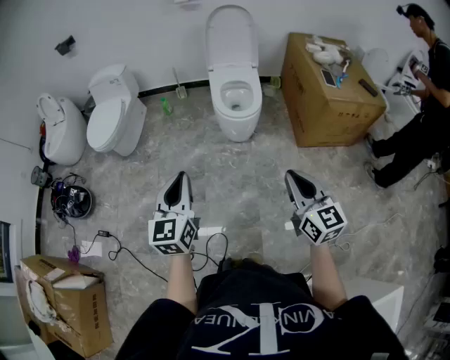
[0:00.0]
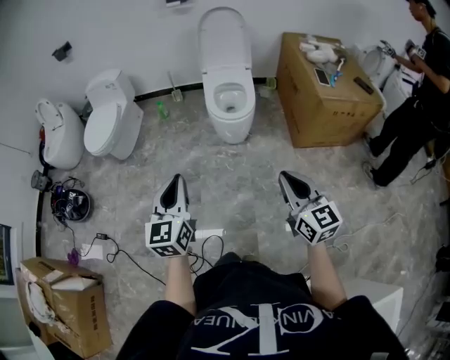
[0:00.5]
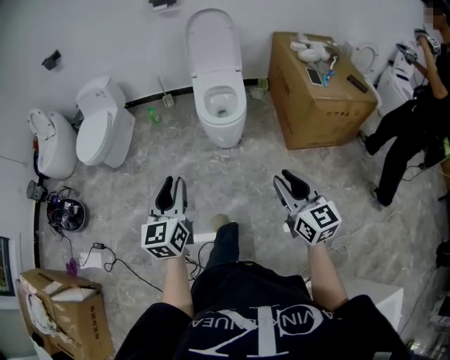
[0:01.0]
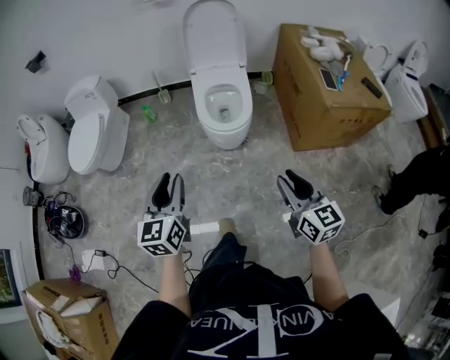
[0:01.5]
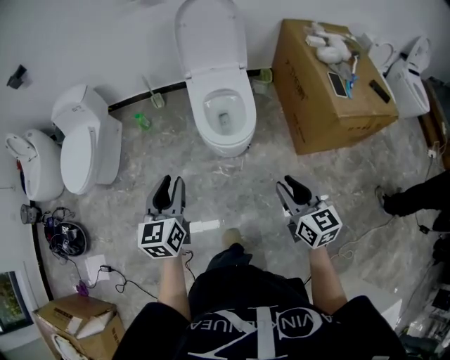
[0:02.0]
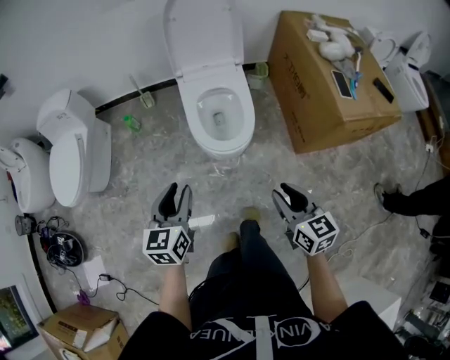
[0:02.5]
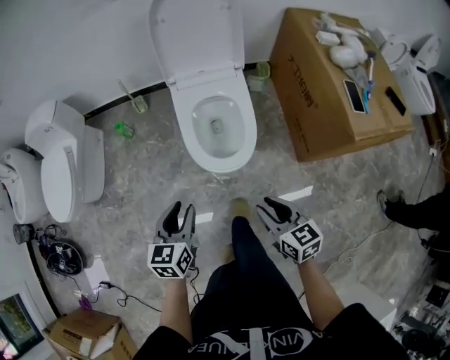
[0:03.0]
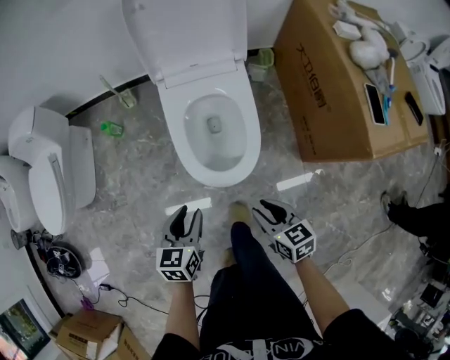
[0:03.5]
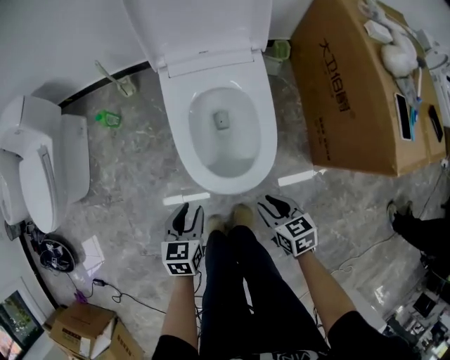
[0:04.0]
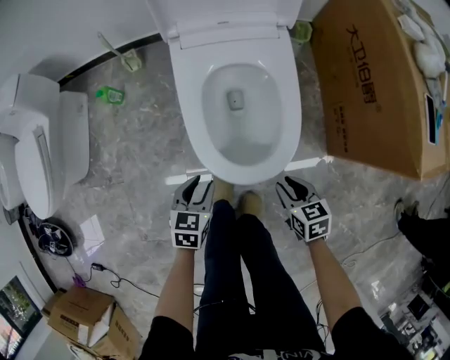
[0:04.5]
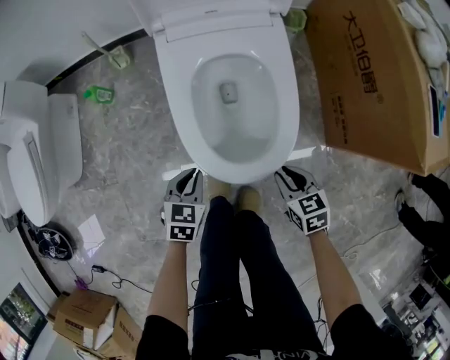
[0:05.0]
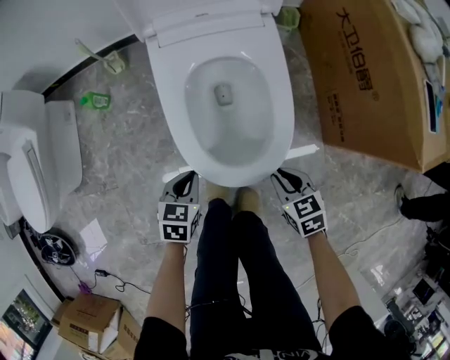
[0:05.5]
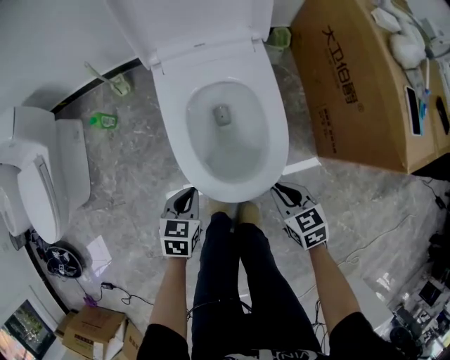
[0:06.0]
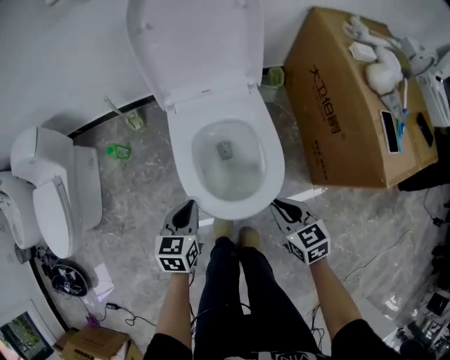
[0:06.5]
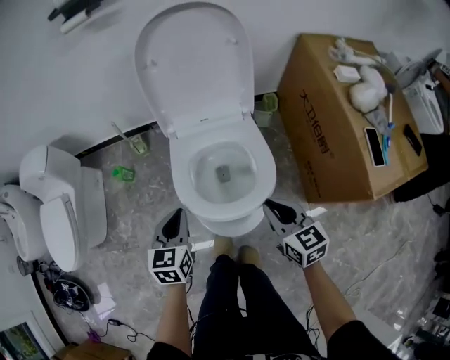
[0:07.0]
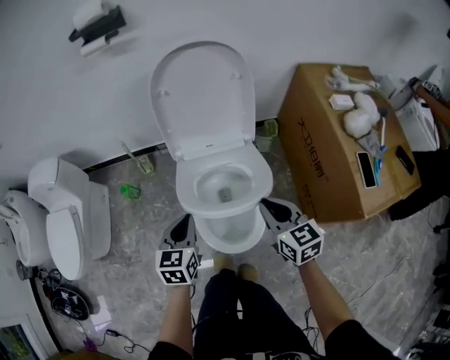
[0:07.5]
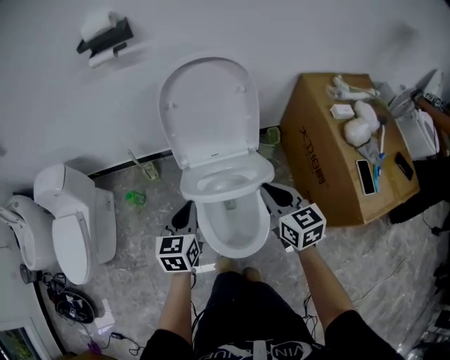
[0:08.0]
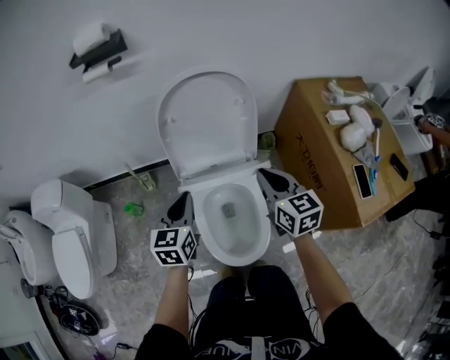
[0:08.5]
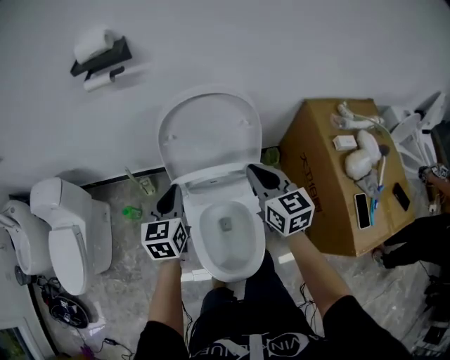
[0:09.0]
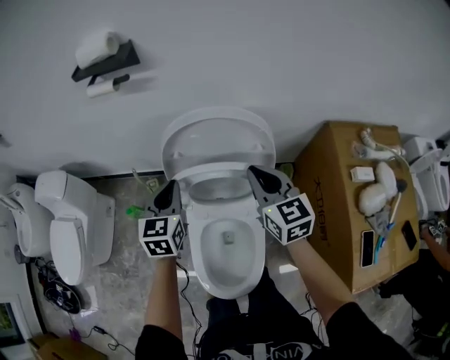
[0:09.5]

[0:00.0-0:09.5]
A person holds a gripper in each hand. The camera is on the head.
0:00.0 to 0:02.0: The grippers both shift forward by about 30 cm. The left gripper opens up. Meanwhile the right gripper opens up.
0:02.0 to 0:04.0: The grippers both shift downward and forward by some 40 cm. The right gripper swivels approximately 30 degrees; the left gripper swivels approximately 30 degrees.
0:04.0 to 0:05.5: The left gripper moves downward and forward, approximately 10 cm, and closes up; the right gripper moves downward, about 5 cm.
0:05.5 to 0:07.5: The right gripper goes about 35 cm upward and forward, and swivels approximately 30 degrees. The left gripper moves upward, roughly 30 cm, and turns by roughly 30 degrees.
0:07.5 to 0:09.5: The left gripper moves forward and upward, some 30 cm; the right gripper is displaced forward by some 30 cm.

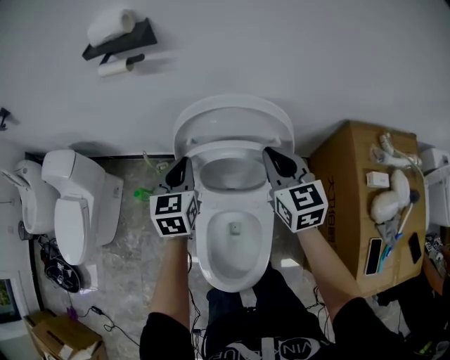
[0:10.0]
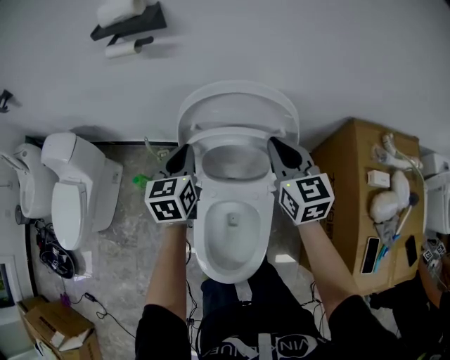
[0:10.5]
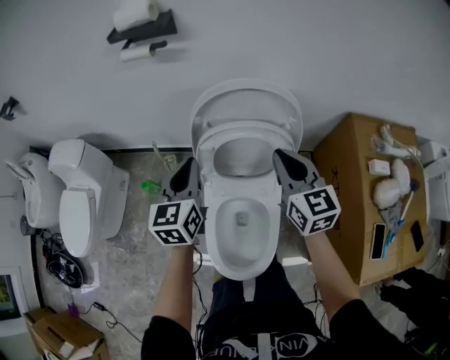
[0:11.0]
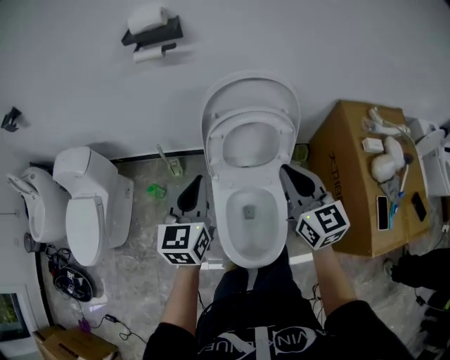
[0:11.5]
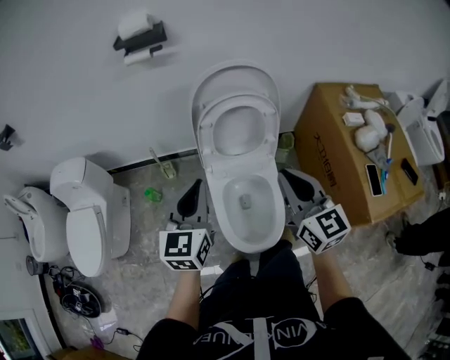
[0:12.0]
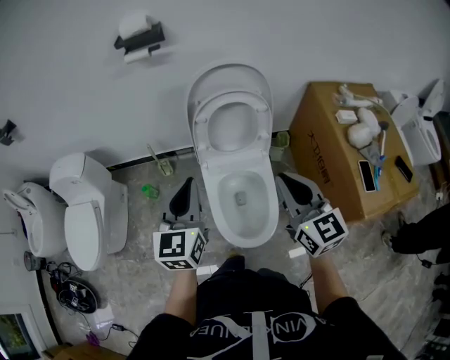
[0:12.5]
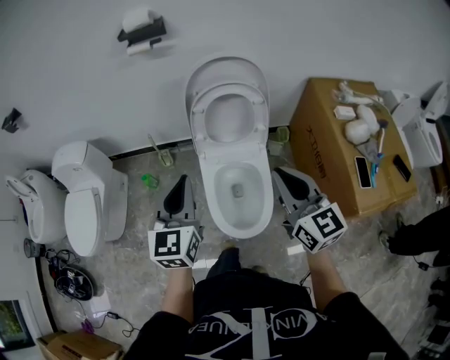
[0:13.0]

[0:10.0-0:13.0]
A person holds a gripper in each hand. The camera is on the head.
0:10.0 to 0:11.5: The left gripper travels backward and upward by approximately 20 cm. The right gripper shifts some 20 cm backward.
0:11.5 to 0:13.0: Both grippers move backward, approximately 15 cm.

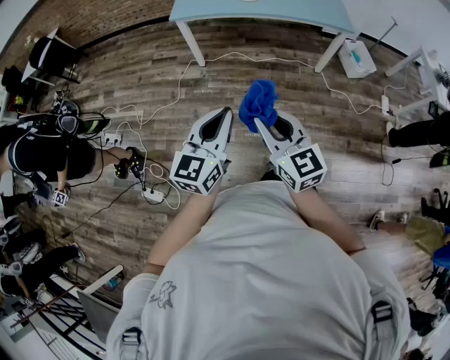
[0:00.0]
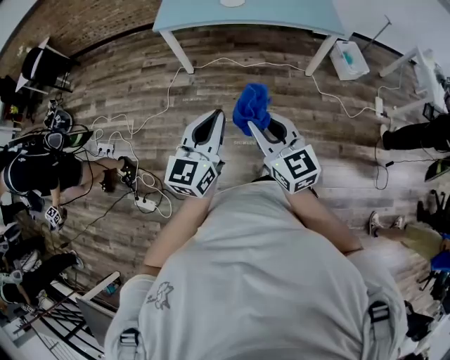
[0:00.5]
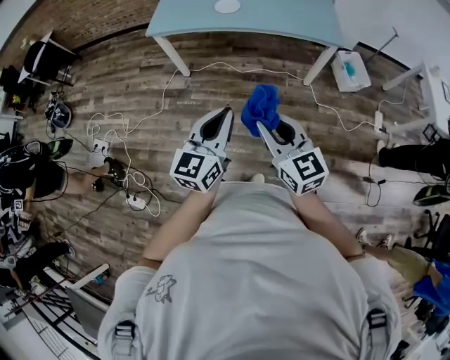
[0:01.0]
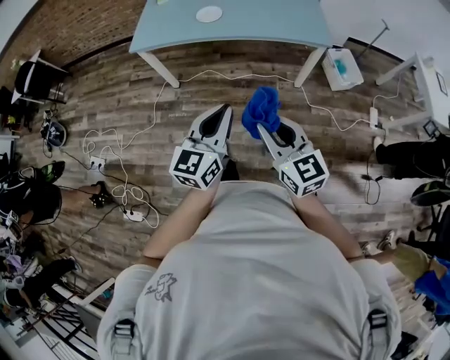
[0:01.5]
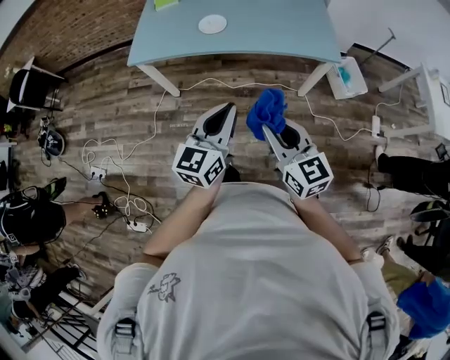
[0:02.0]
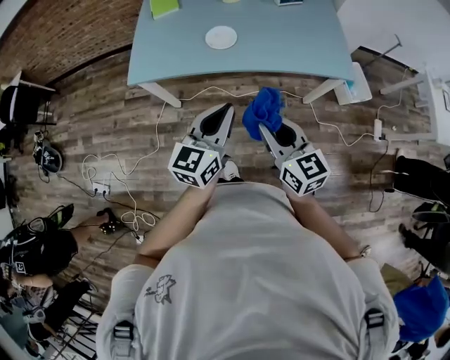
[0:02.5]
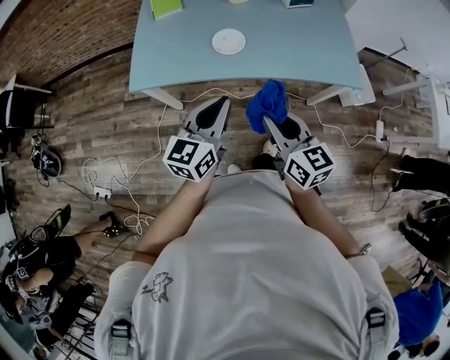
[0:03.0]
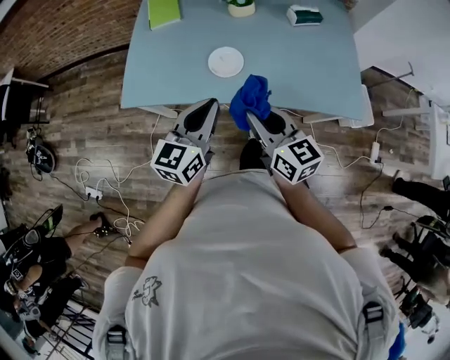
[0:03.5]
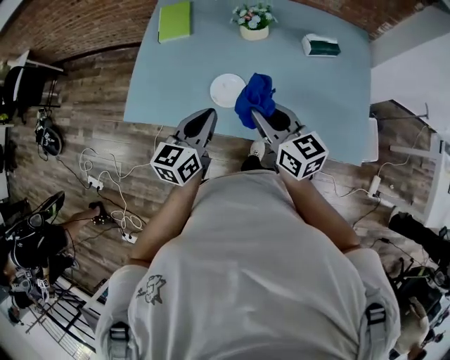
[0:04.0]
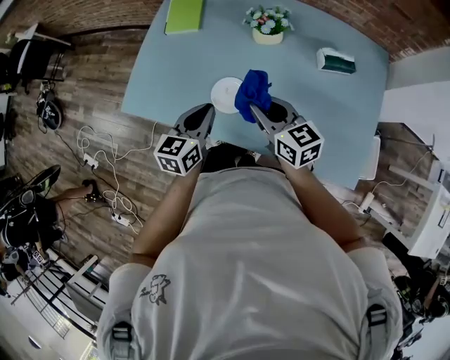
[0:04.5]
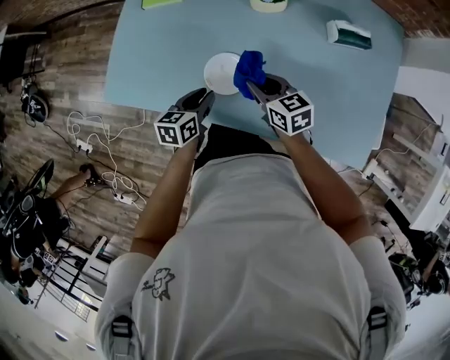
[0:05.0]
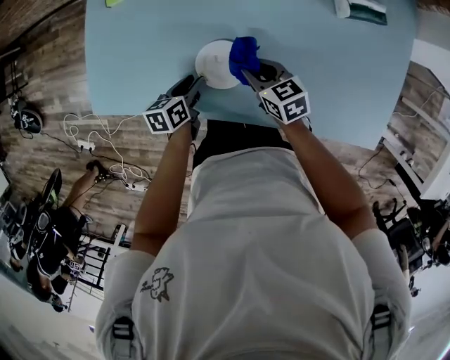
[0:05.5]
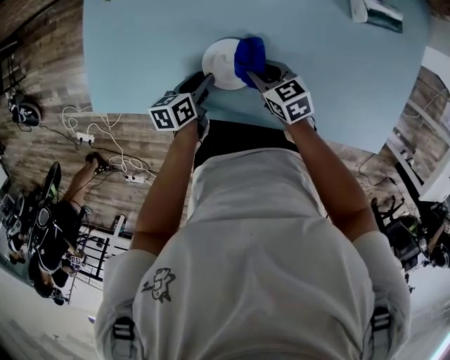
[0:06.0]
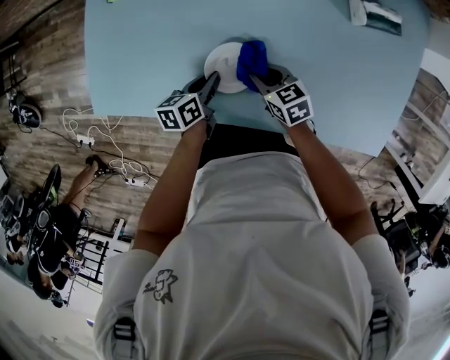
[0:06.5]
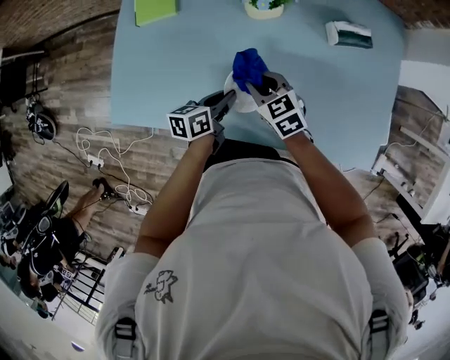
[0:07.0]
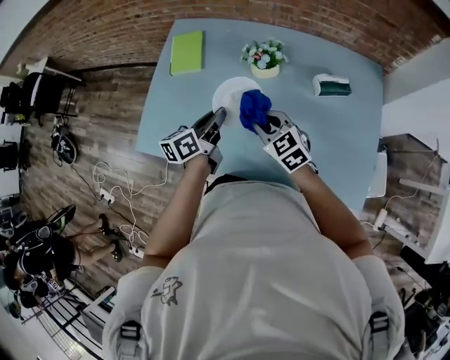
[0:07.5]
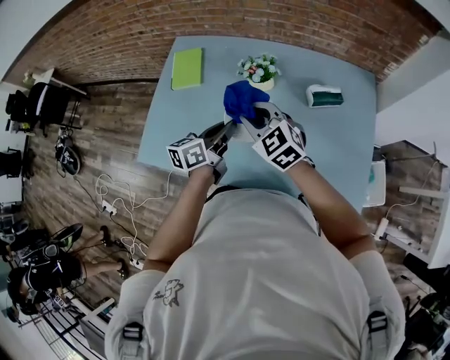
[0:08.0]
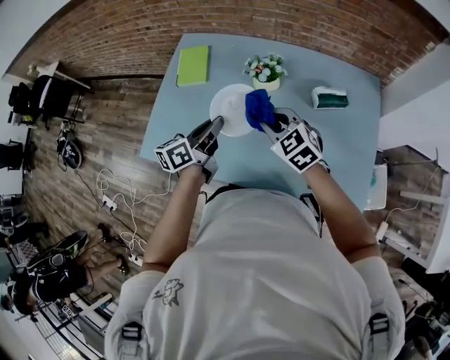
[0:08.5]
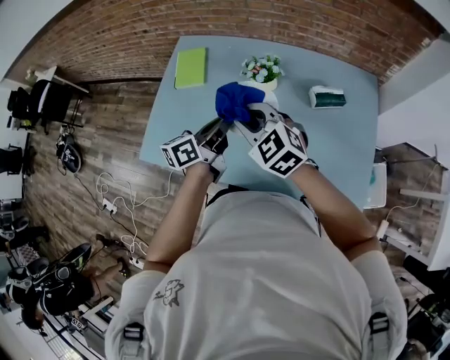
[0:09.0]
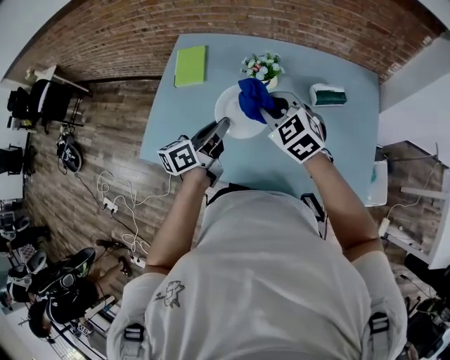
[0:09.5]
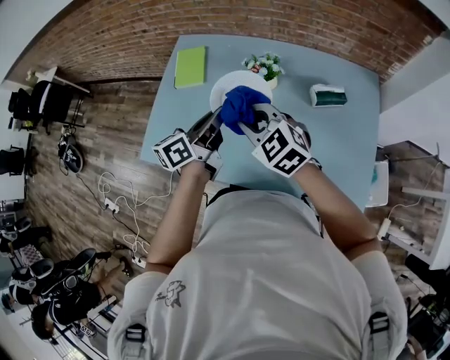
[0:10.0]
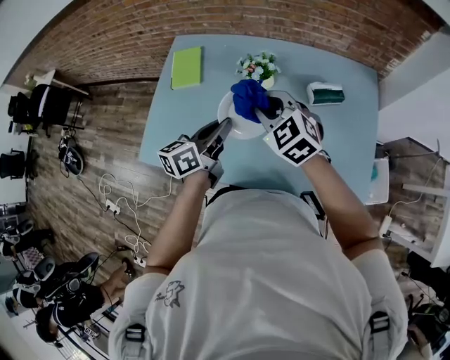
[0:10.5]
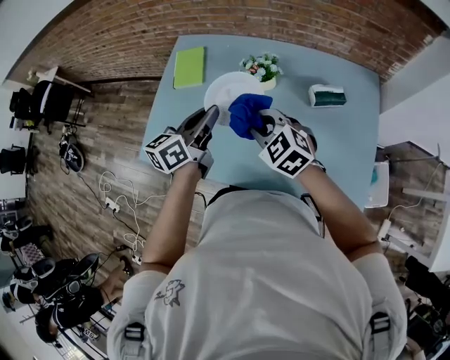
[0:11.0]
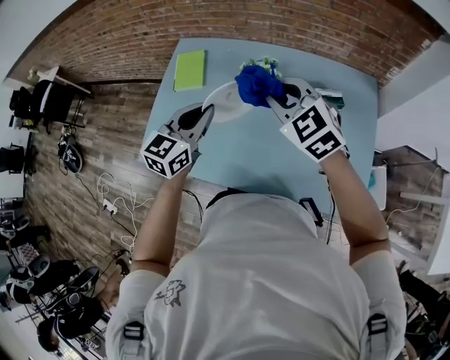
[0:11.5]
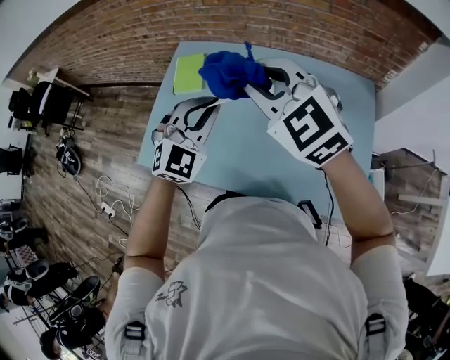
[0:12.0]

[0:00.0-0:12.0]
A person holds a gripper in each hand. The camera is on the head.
0:00.0 to 0:02.0: Both grippers travel together forward and to the right, about 40 cm.
0:02.0 to 0:04.0: The pair of grippers is taken forward, approximately 50 cm.
0:04.0 to 0:06.0: Both grippers move downward and forward, roughly 35 cm. The left gripper tips its fingers downward by some 30 degrees, and opens up, while the right gripper tips its fingers downward by some 30 degrees.
0:06.0 to 0:08.0: The two grippers go some 35 cm upward. The left gripper angles its fingers upward, by roughly 30 degrees, and closes up, while the right gripper rolls counterclockwise, seen from behind, by approximately 40 degrees.
0:08.0 to 0:10.0: The left gripper heads upward, covering some 5 cm.
0:10.0 to 0:12.0: The right gripper shifts roughly 20 cm upward. Meanwhile the left gripper moves upward, roughly 10 cm, and twists roughly 90 degrees clockwise, seen from behind.

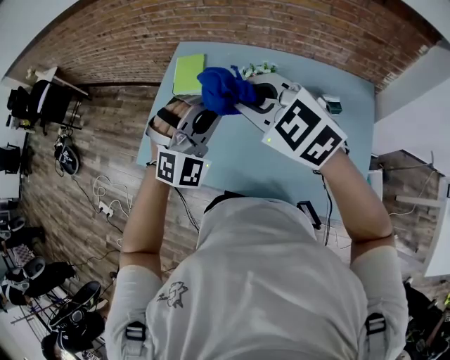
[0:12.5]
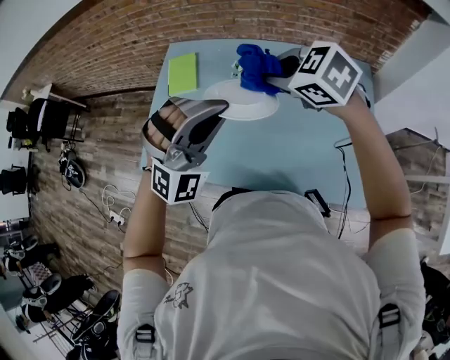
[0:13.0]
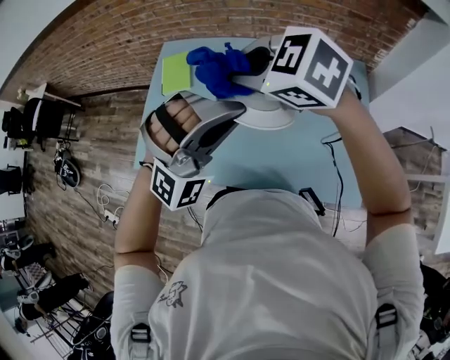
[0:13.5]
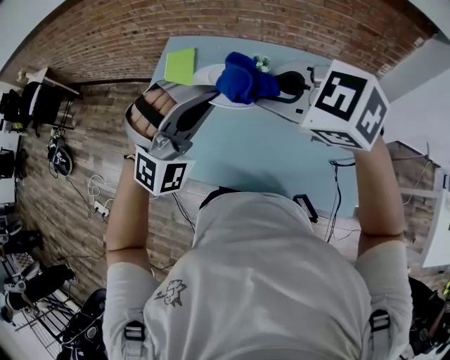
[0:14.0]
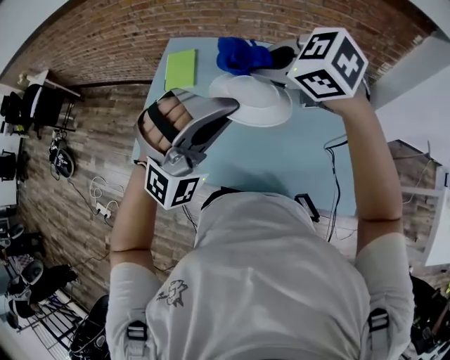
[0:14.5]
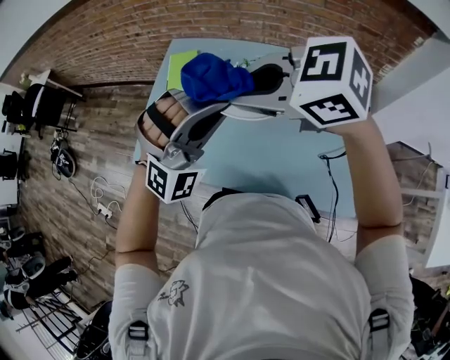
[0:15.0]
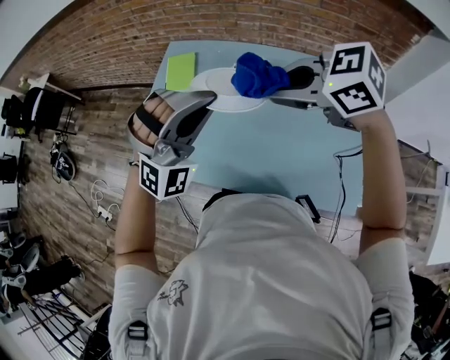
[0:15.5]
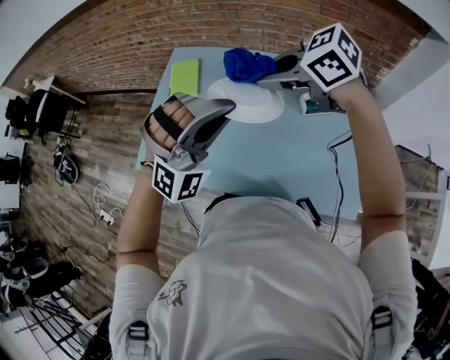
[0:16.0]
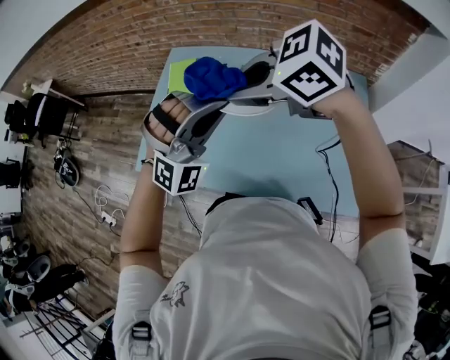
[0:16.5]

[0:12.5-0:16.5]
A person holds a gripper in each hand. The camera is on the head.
0:12.5 to 0:14.5: The left gripper heads upward and backward, covering some 10 cm, and swivels roughly 20 degrees; the right gripper travels forward and to the right by some 10 cm, and rotates some 20 degrees.
0:14.5 to 0:16.5: The right gripper shifts by about 10 cm.
